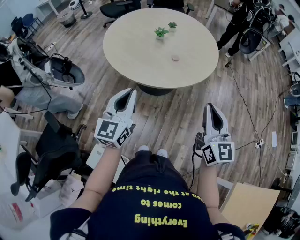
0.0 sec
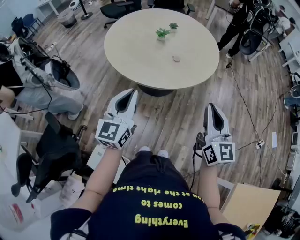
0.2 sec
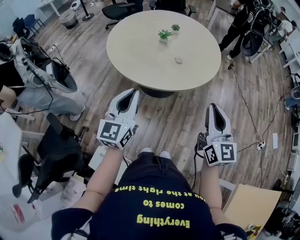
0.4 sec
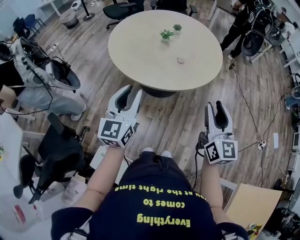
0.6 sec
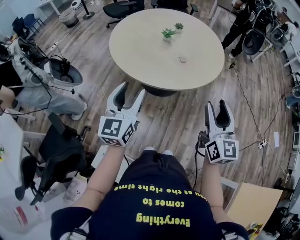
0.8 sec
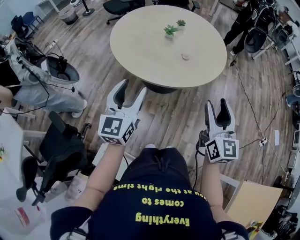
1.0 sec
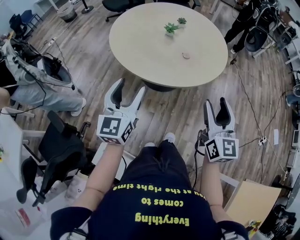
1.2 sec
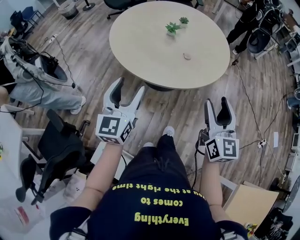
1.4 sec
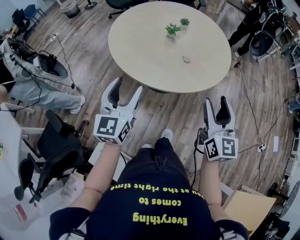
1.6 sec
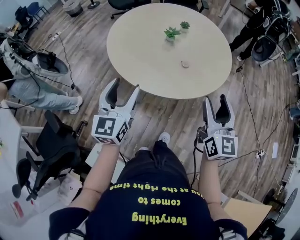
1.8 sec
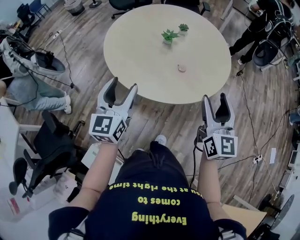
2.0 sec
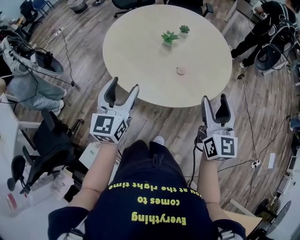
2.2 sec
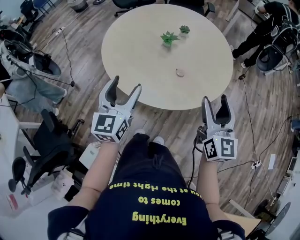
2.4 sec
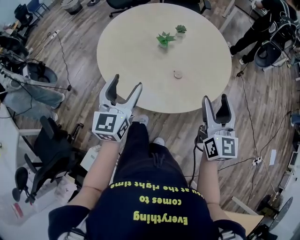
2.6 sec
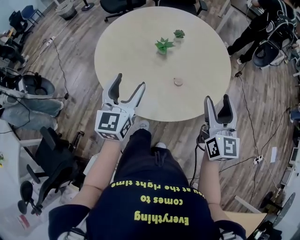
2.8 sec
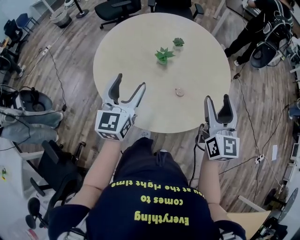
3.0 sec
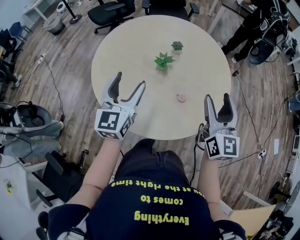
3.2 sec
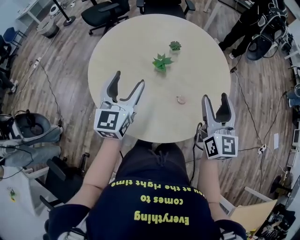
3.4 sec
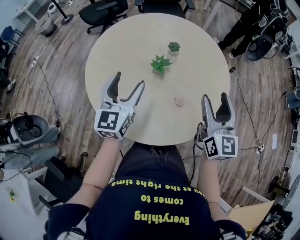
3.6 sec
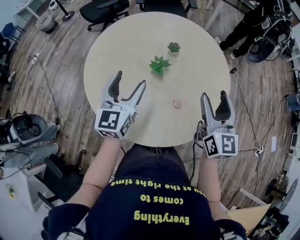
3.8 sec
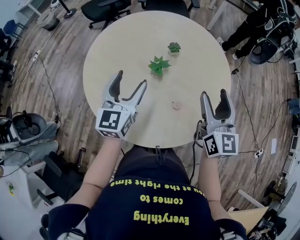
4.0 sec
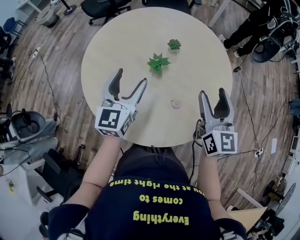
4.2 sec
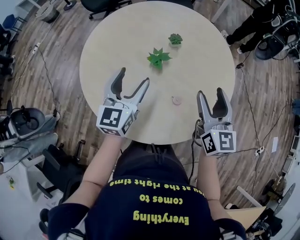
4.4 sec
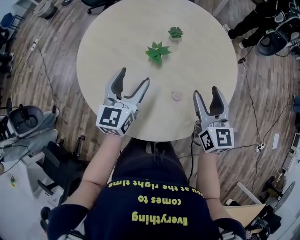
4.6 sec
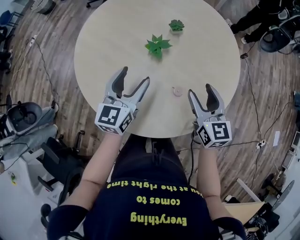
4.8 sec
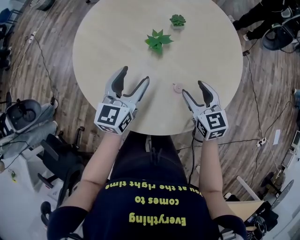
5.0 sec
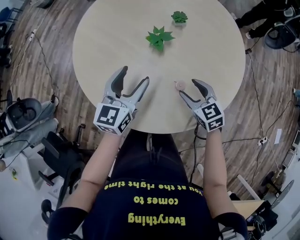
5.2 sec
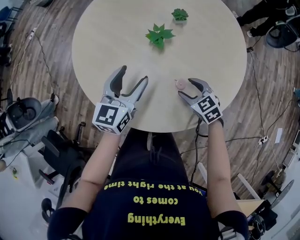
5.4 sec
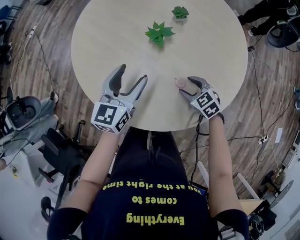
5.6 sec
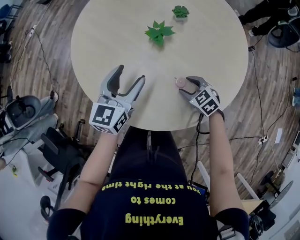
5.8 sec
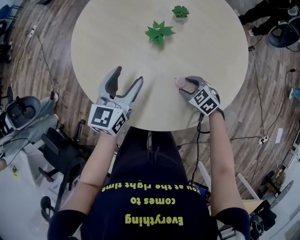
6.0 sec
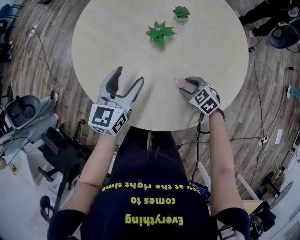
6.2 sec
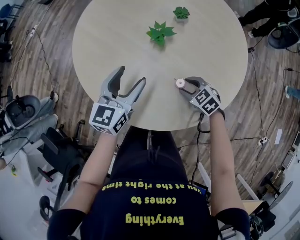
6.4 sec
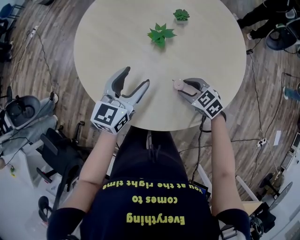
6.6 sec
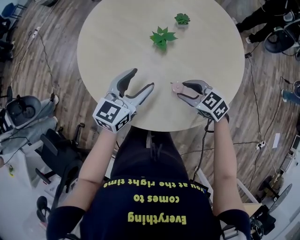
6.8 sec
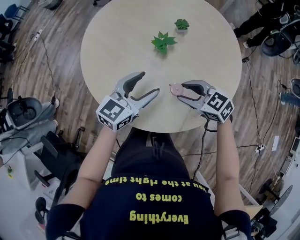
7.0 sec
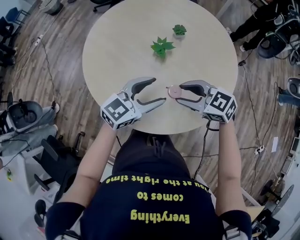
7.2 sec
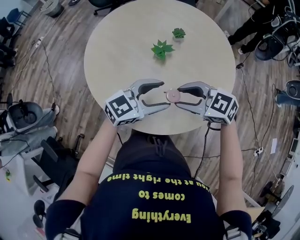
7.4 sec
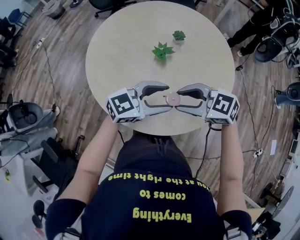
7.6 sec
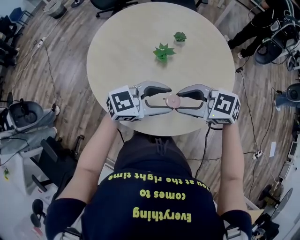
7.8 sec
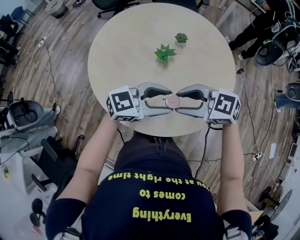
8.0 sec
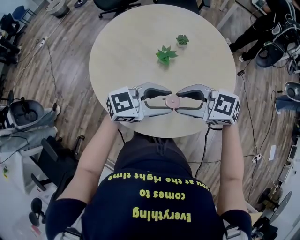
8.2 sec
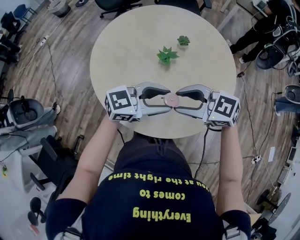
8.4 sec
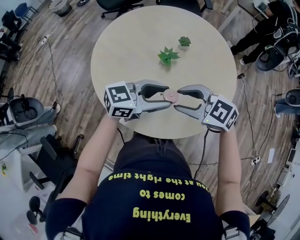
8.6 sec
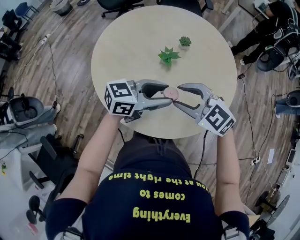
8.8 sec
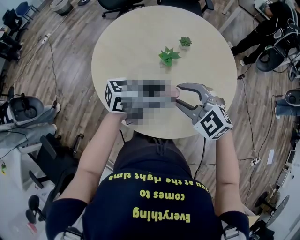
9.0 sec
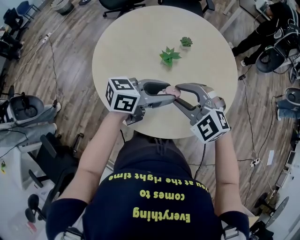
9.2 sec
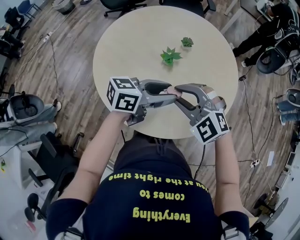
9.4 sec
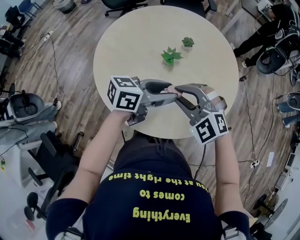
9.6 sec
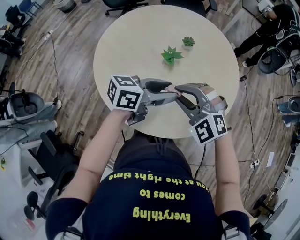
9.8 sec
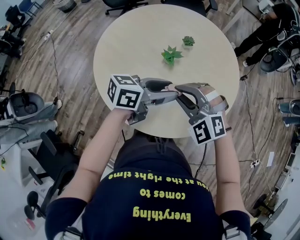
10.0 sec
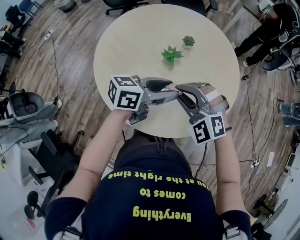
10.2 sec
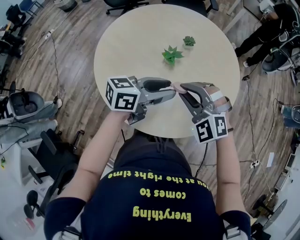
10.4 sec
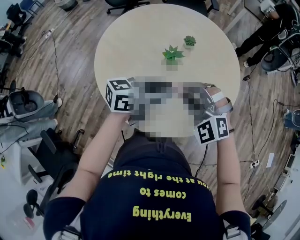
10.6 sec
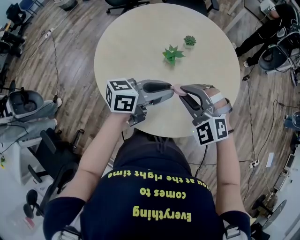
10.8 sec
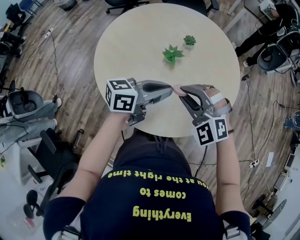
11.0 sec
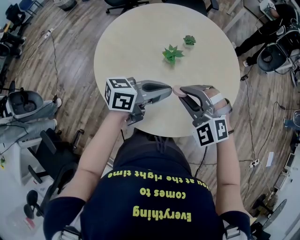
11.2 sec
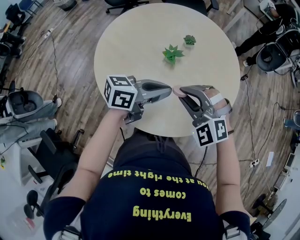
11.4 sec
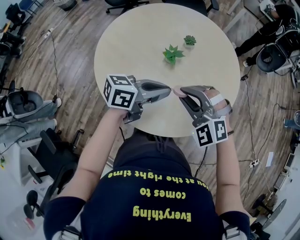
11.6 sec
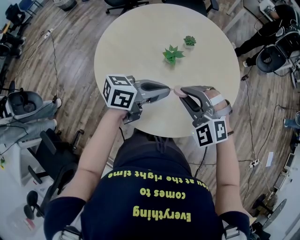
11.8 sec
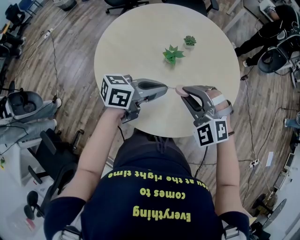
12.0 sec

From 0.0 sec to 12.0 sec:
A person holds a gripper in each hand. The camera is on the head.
From 0.0 sec to 1.6 sec: The right gripper goes some 10 cm forward, and opens its fingers, while the left gripper moves forward and to the left, approximately 10 cm, and opens.
From 1.6 sec to 3.0 sec: The grippers both shift forward by about 25 cm.
From 3.0 sec to 4.4 sec: The left gripper moves forward, some 15 cm. The right gripper shifts approximately 15 cm forward and downward.
From 4.4 sec to 6.0 sec: The right gripper goes roughly 35 cm downward, and angles its fingers downward, by roughly 50 degrees, while the left gripper shifts about 10 cm downward.
From 6.0 sec to 7.6 sec: The left gripper moves about 15 cm, and changes its angle by approximately 50 degrees. The right gripper is displaced upward by roughly 25 cm, and rotates about 30 degrees.
From 7.6 sec to 9.0 sec: The right gripper changes its angle by roughly 30 degrees. Meanwhile the left gripper changes its angle by roughly 30 degrees.
From 9.0 sec to 10.4 sec: The right gripper swivels roughly 20 degrees, and closes its fingers.
From 10.4 sec to 12.0 sec: The left gripper closes.

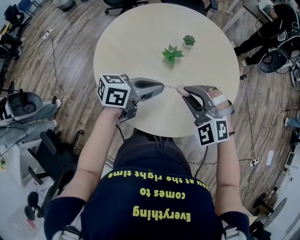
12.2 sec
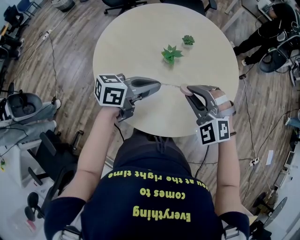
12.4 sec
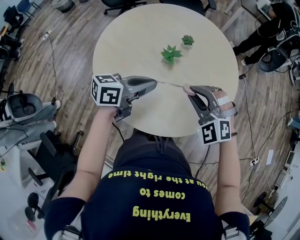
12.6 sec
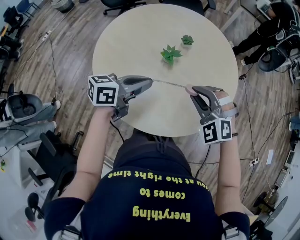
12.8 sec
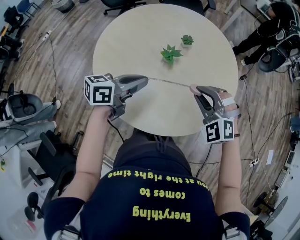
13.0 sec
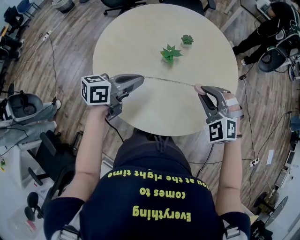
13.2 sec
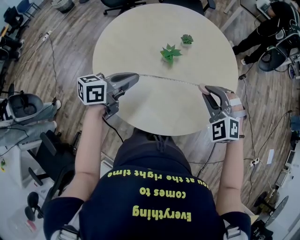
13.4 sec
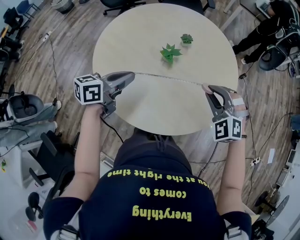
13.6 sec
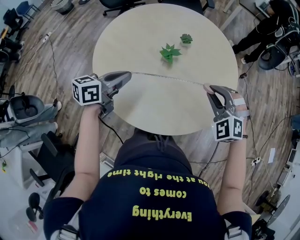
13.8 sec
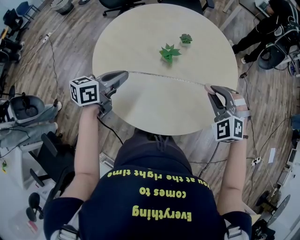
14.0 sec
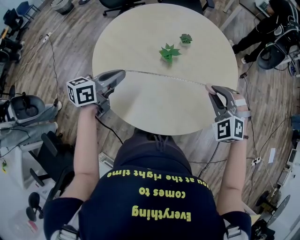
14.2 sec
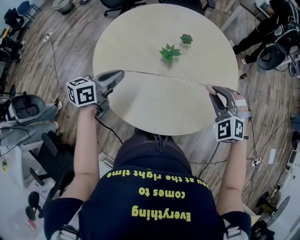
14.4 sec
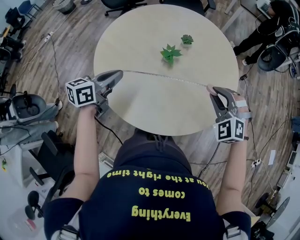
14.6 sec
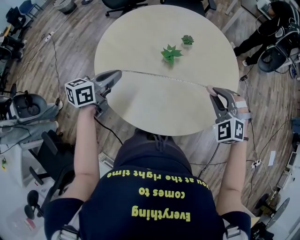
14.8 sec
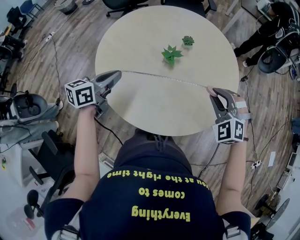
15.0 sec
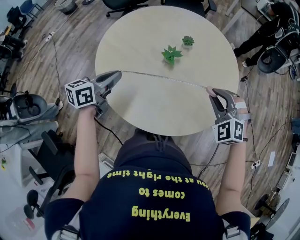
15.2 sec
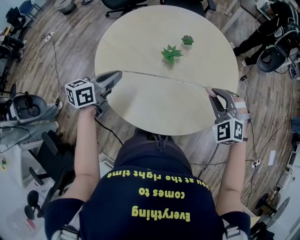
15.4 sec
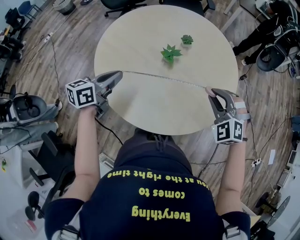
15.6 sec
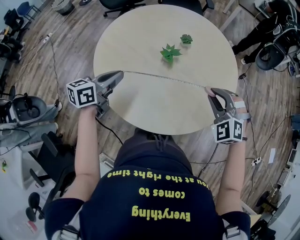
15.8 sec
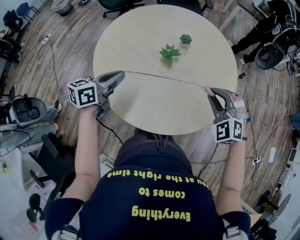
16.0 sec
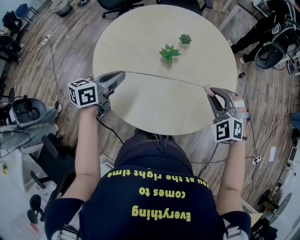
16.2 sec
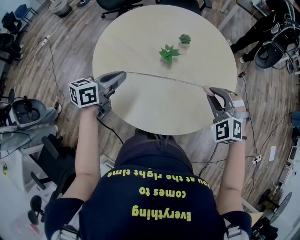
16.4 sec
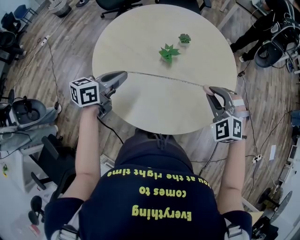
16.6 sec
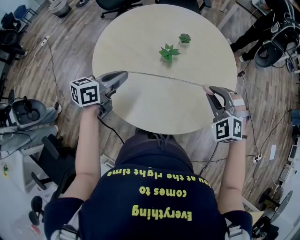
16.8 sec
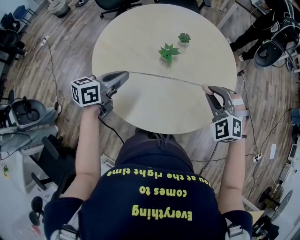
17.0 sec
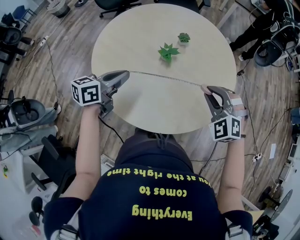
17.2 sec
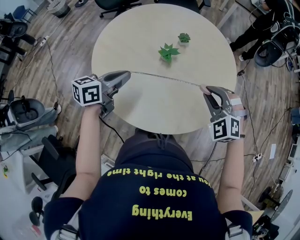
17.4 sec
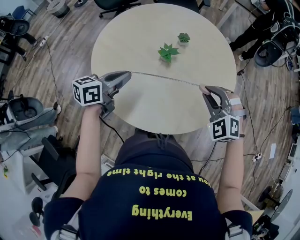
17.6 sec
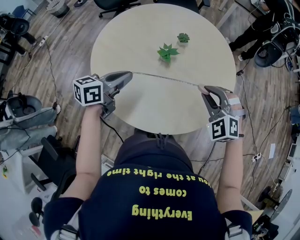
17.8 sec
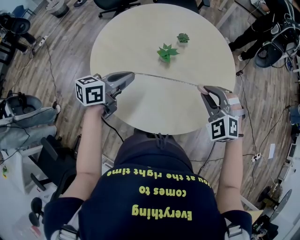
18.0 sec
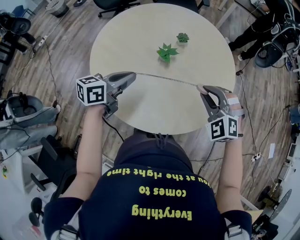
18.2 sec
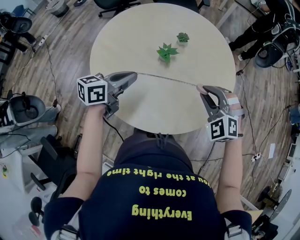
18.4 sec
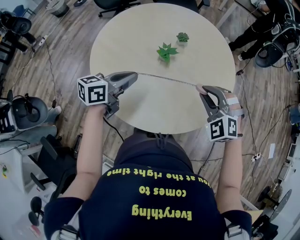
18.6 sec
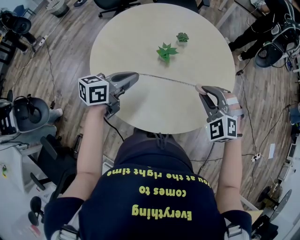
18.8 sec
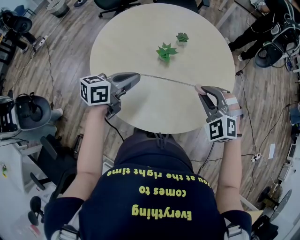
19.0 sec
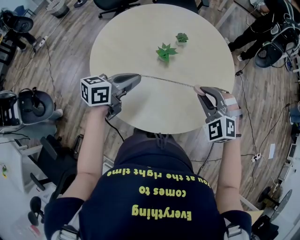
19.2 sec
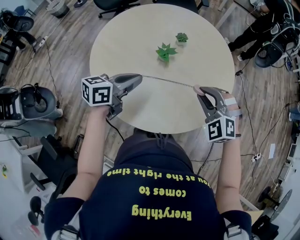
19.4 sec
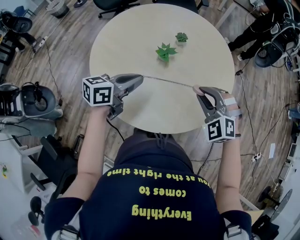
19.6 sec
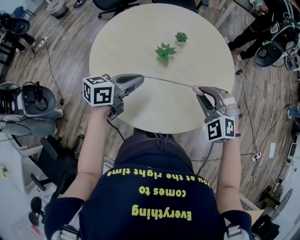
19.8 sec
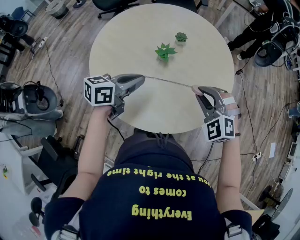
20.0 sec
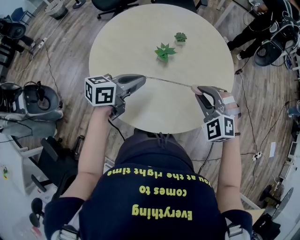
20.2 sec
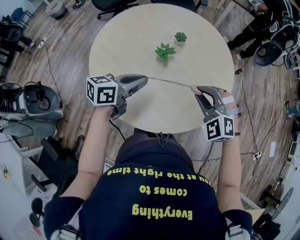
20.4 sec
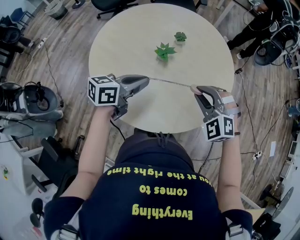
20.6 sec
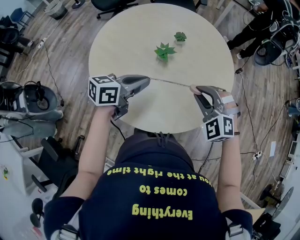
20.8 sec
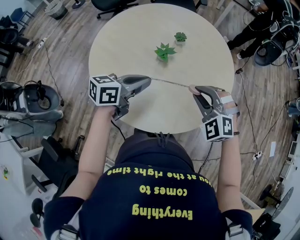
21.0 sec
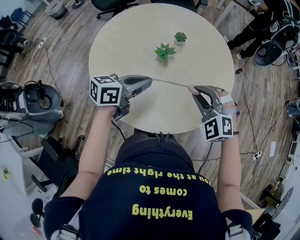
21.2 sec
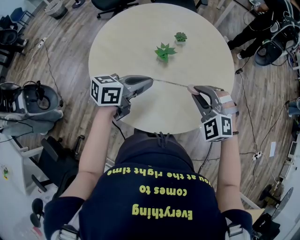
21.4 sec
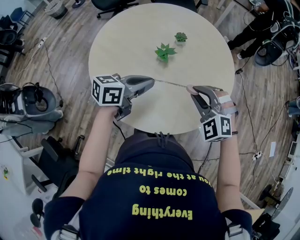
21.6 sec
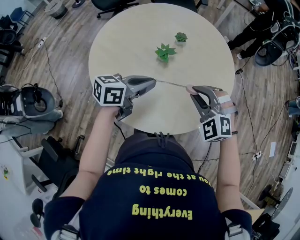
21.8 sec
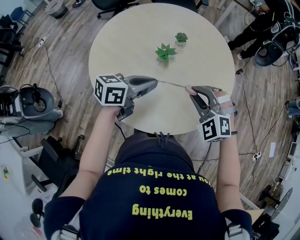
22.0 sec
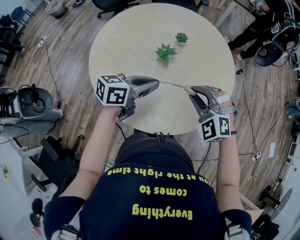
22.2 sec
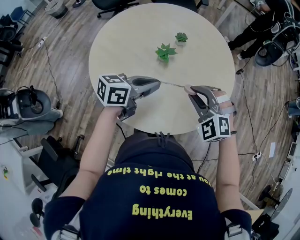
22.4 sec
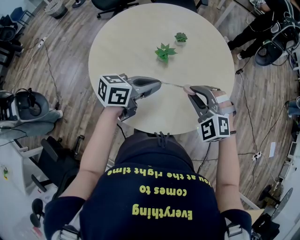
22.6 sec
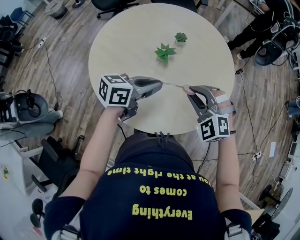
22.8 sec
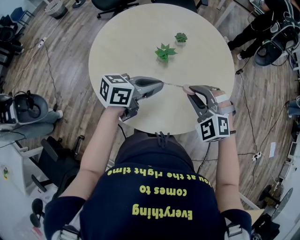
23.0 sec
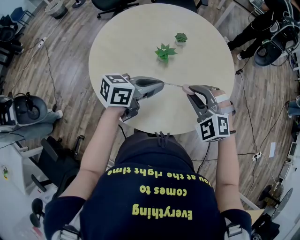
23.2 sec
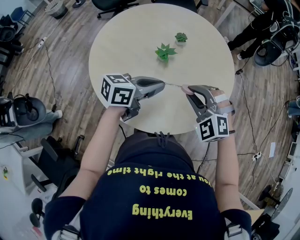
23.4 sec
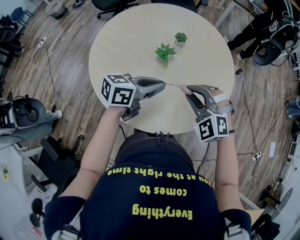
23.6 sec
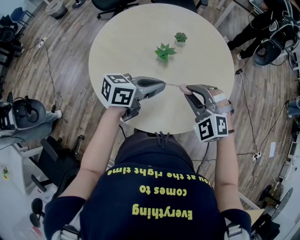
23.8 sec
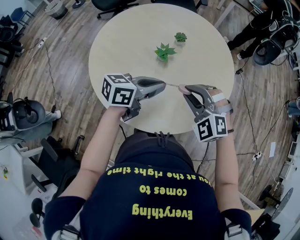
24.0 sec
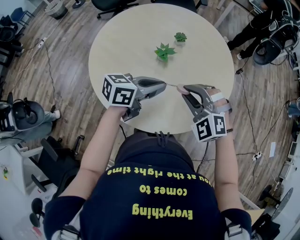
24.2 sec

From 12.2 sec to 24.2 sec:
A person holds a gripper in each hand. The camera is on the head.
From 12.2 sec to 13.8 sec: The right gripper is displaced to the right by some 10 cm, while the left gripper shifts some 10 cm to the left.
From 13.8 sec to 19.8 sec: There are only small adjustments of the grippers.
From 19.8 sec to 21.2 sec: The grippers make only small movements.
From 21.2 sec to 24.2 sec: The grippers move only a little.
